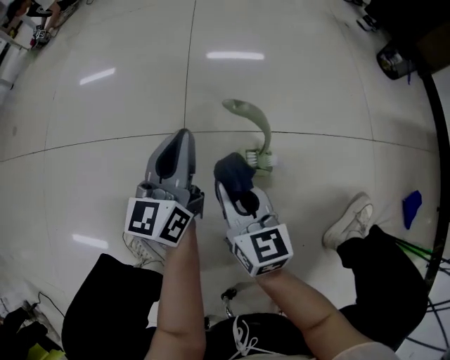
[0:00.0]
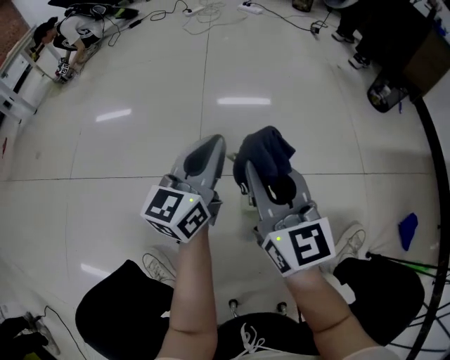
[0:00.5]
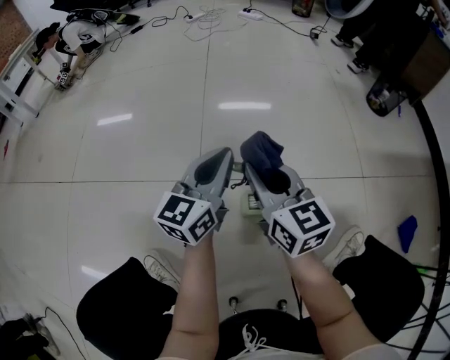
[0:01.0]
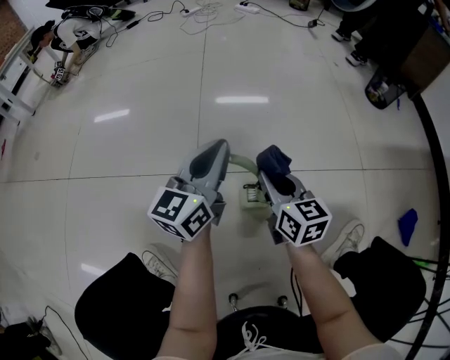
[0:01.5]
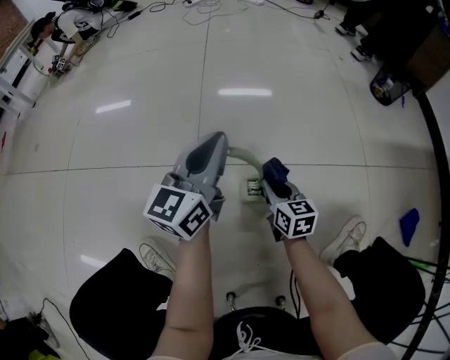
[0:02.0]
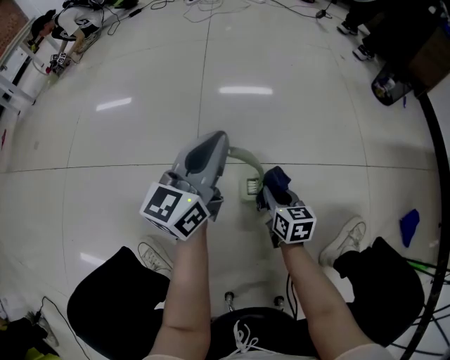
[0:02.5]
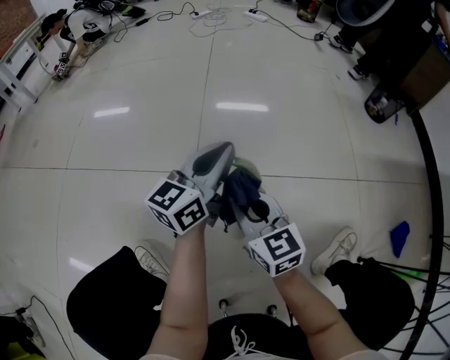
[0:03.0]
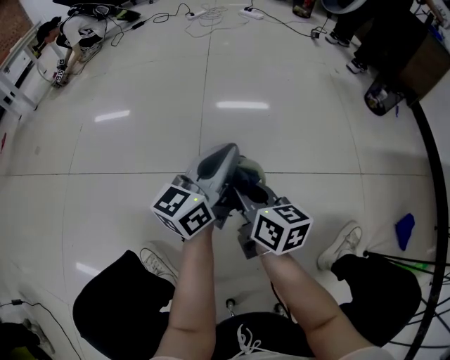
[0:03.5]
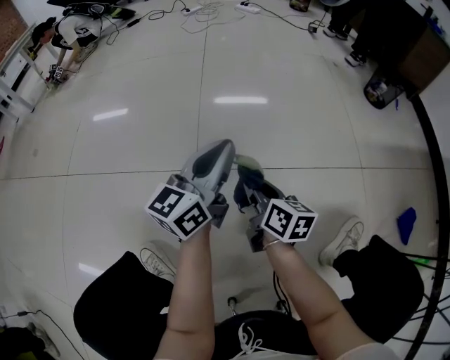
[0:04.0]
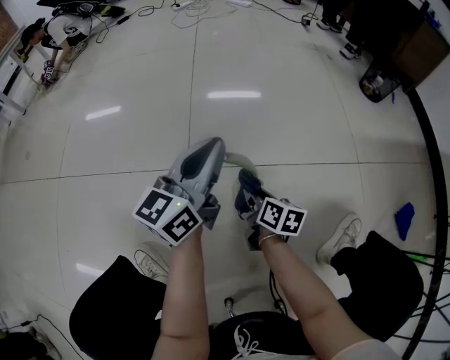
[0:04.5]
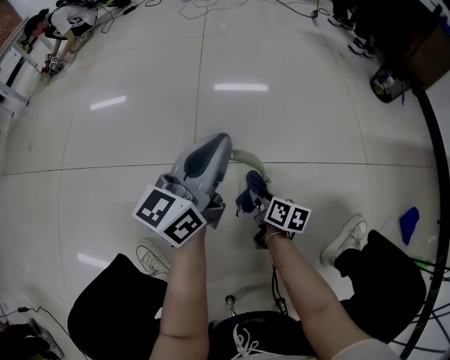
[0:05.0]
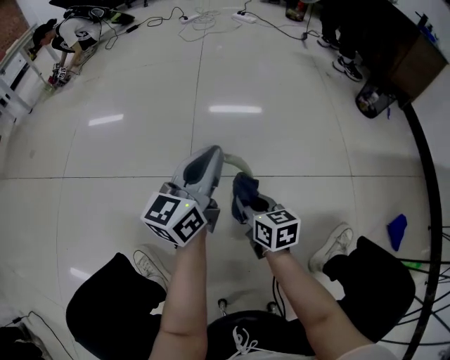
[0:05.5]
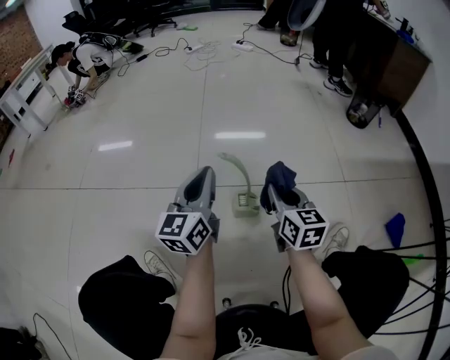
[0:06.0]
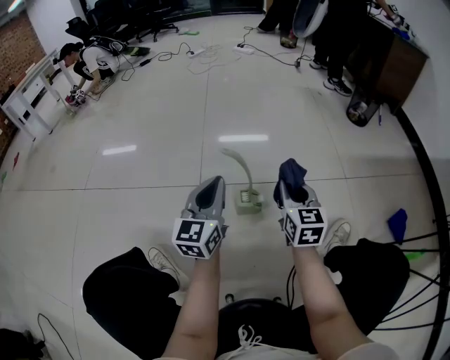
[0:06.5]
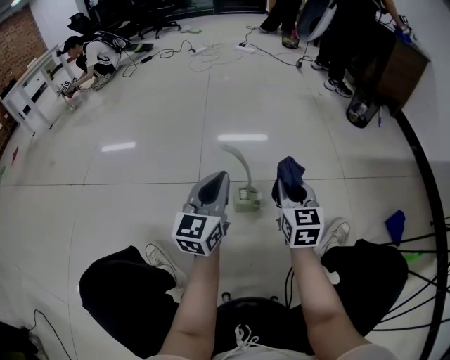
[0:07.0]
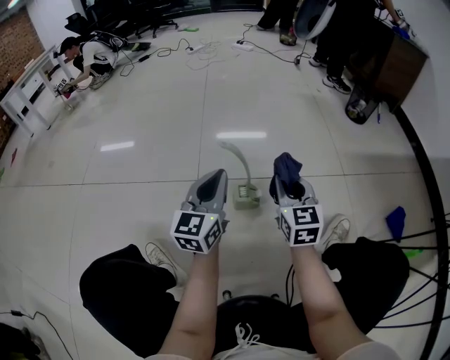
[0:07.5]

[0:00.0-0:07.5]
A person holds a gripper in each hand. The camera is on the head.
0:00.0 to 0:02.0: The right gripper shifts roughly 15 cm to the right and forward, and travels upward and back again, roughly 20 cm each way. Meanwhile the left gripper heads upward and to the right, covering approximately 10 cm.
0:02.0 to 0:04.0: The right gripper shifts approximately 10 cm upward and to the left, and rotates approximately 20 degrees.
0:04.0 to 0:05.5: The right gripper reaches about 15 cm downward, then returns, and turns by about 20 degrees.
0:05.5 to 0:07.5: The left gripper travels backward by roughly 10 cm, while the right gripper travels upward and to the right by roughly 20 cm, and changes its angle by about 40 degrees.

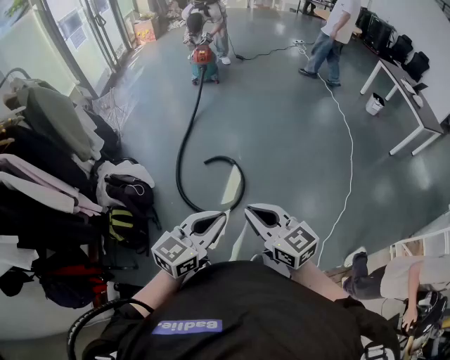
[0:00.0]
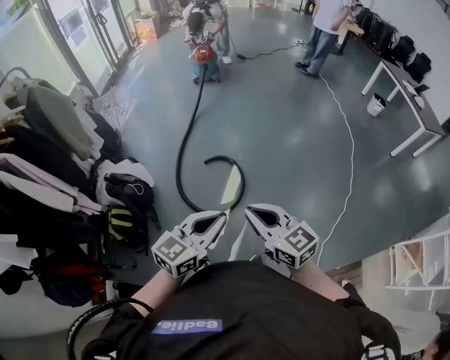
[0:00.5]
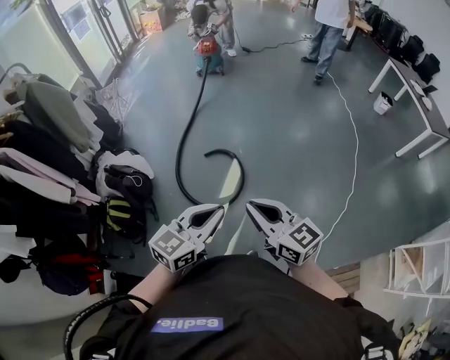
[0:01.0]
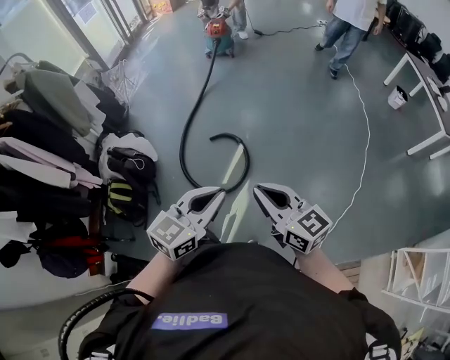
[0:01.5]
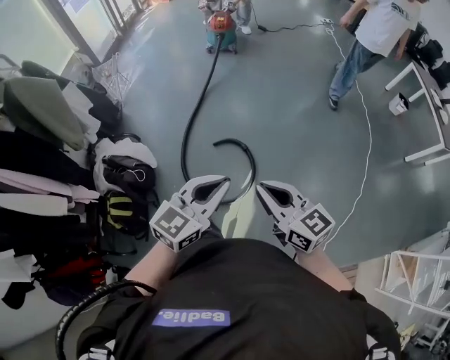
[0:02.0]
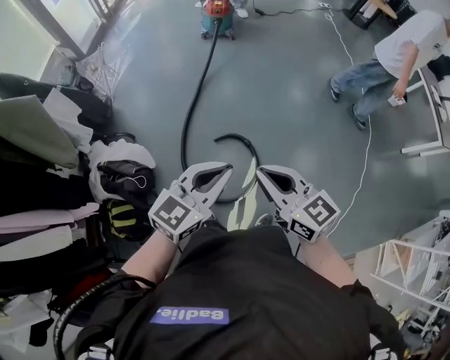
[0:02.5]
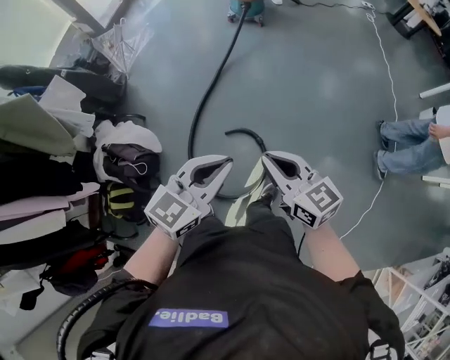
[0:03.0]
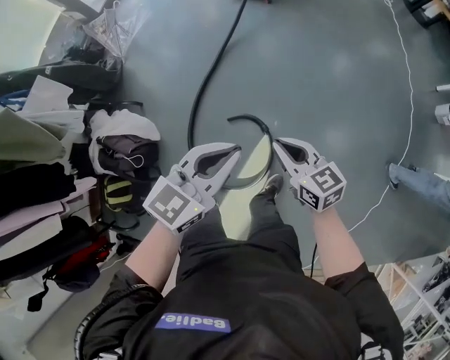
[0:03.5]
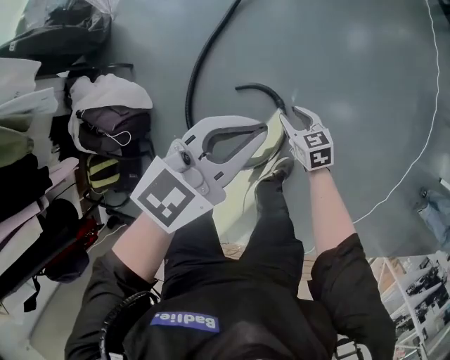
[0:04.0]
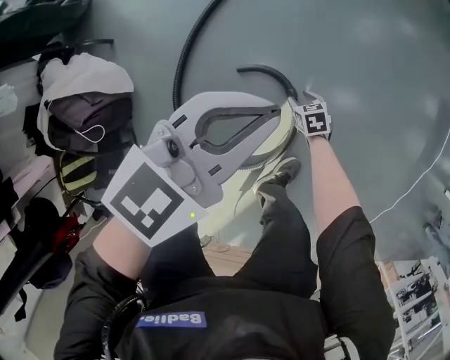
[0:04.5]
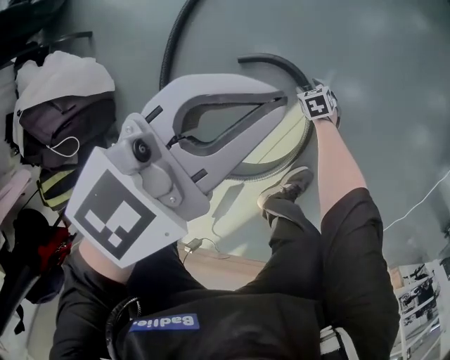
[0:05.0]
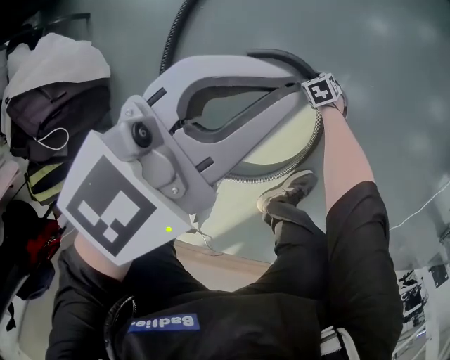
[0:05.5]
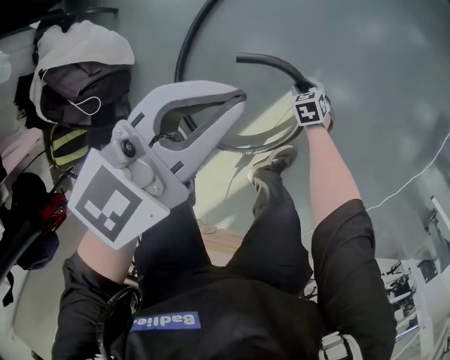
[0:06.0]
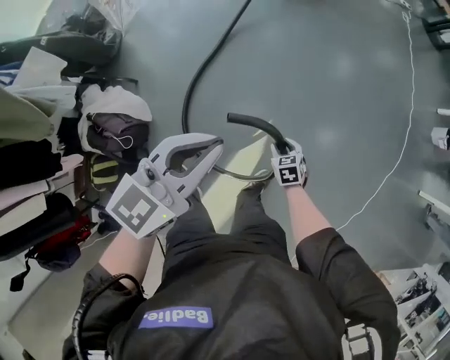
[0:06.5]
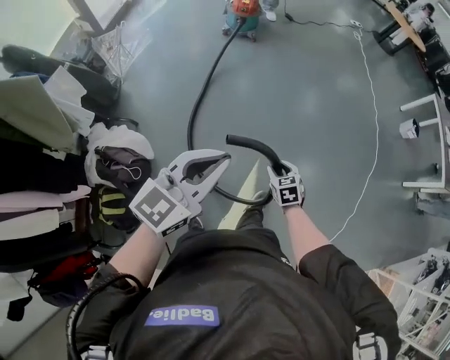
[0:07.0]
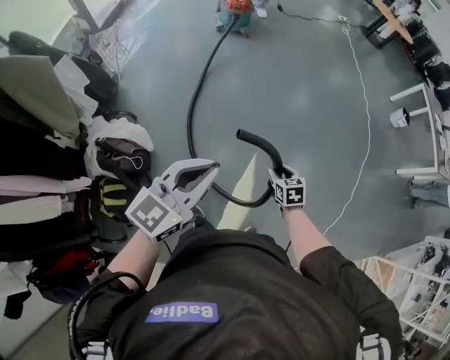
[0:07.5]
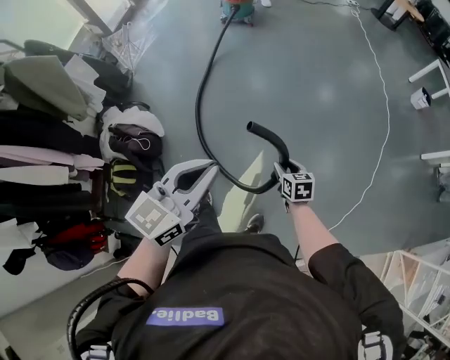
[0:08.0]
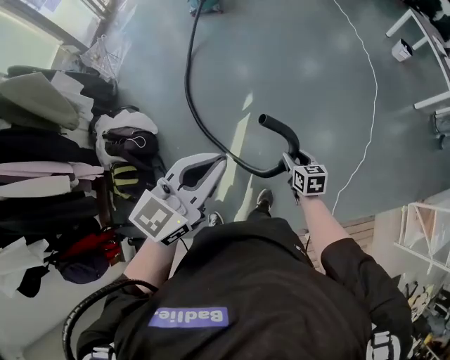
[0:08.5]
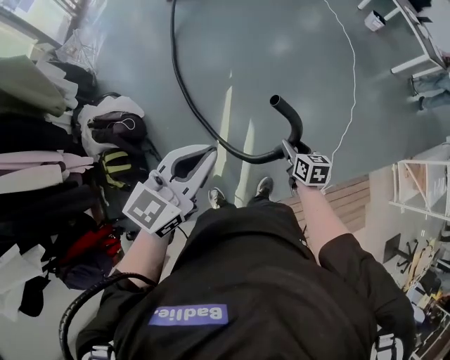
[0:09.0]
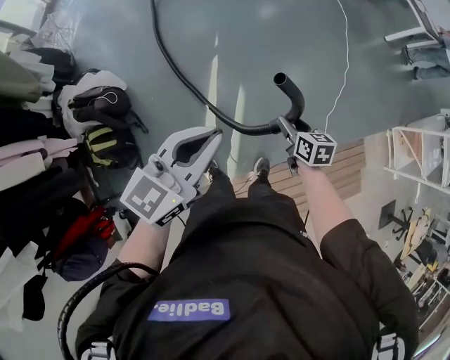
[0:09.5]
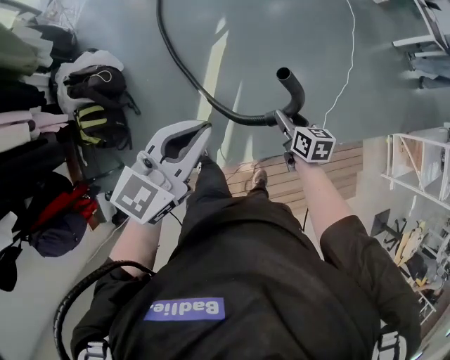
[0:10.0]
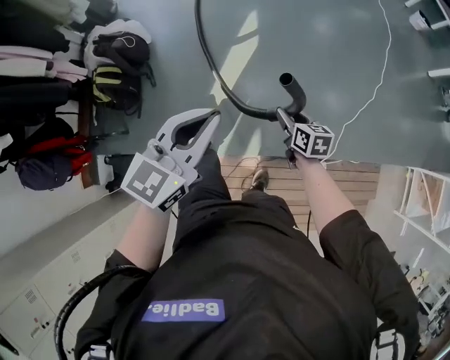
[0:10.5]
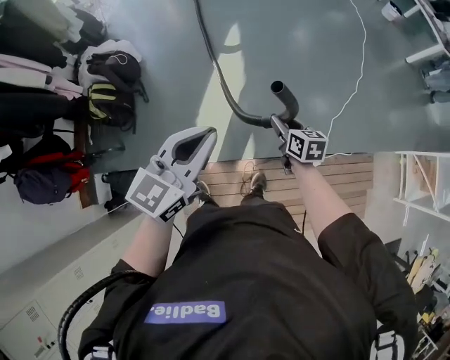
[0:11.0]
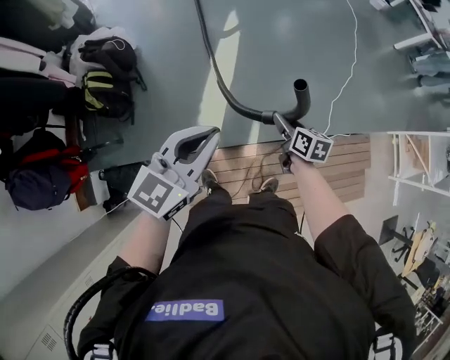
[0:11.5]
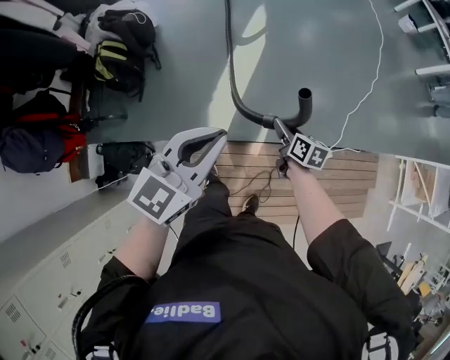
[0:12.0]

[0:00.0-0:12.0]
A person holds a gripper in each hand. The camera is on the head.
0:00.0 to 0:02.0: Both grippers travel together forward, about 20 cm.
0:02.0 to 0:04.0: The pair of grippers is taken forward, approximately 40 cm. The right gripper shifts some 50 cm downward, tilts its fingers some 40 degrees downward, and opens. The left gripper shifts roughly 25 cm downward.
0:04.0 to 0:06.0: The left gripper goes about 15 cm downward. The right gripper is displaced downward by roughly 30 cm, and changes its angle by approximately 30 degrees.
0:06.0 to 0:08.0: Both grippers are carried roughly 50 cm. The right gripper travels upward by approximately 60 cm, and swivels some 50 degrees.
0:08.0 to 0:10.0: Both grippers move backward, some 35 cm.
0:10.0 to 0:12.0: Both grippers move backward and downward, some 35 cm.

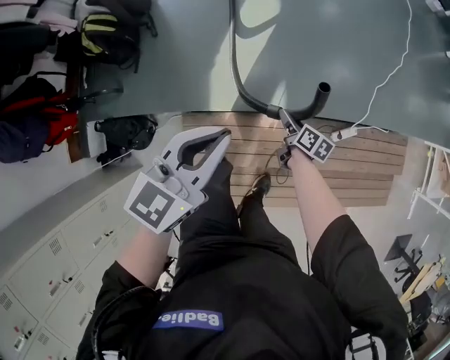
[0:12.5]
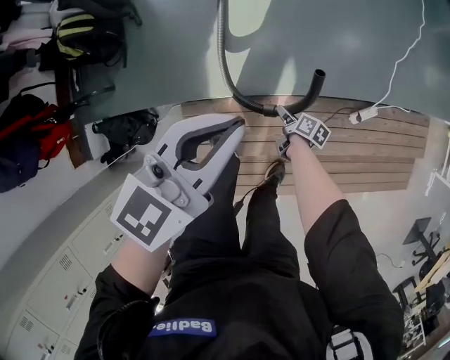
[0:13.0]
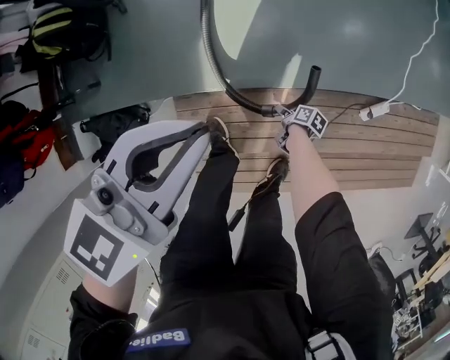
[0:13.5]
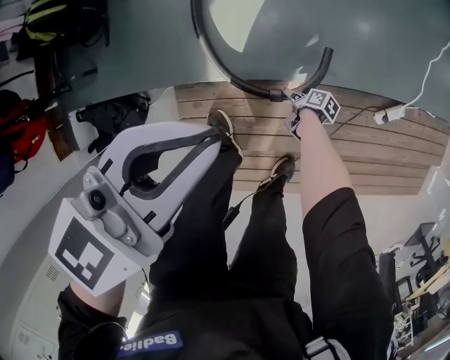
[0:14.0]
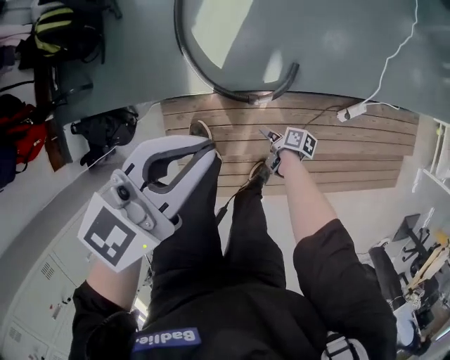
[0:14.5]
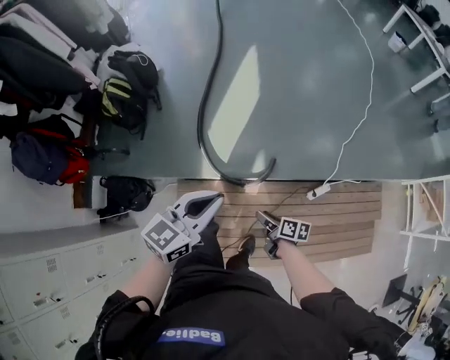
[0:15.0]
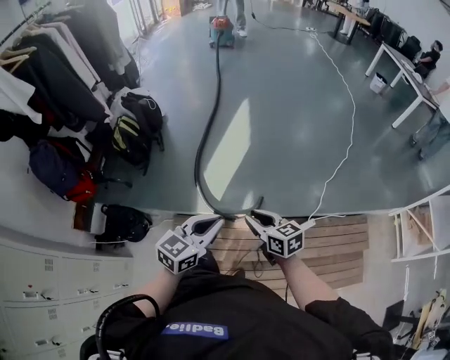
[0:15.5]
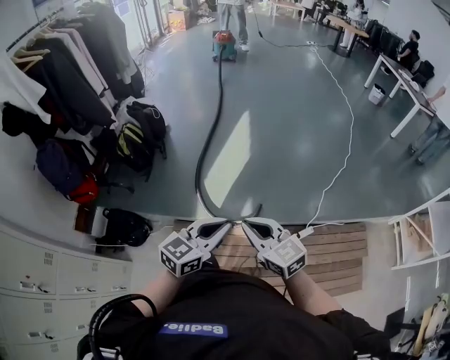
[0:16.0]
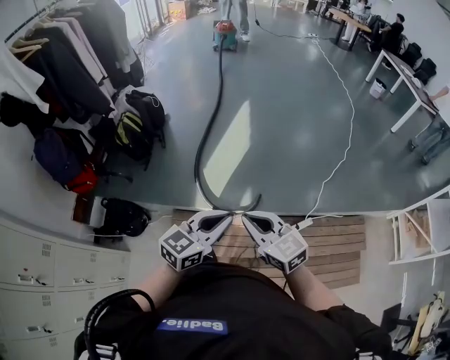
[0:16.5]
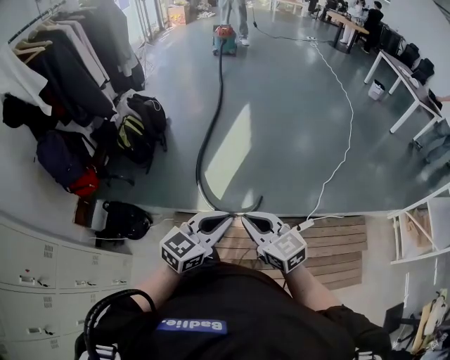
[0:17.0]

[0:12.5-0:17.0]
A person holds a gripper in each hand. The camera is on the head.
0:12.5 to 0:14.5: The right gripper travels downward and backward by about 30 cm, and turns by approximately 30 degrees. The left gripper travels downward by approximately 10 cm.
0:14.5 to 0:17.0: The right gripper travels upward by about 70 cm, rotates around the line of its fingers by approximately 90 degrees, counterclockwise from behind, and closes its fingers. Meanwhile the left gripper shifts approximately 35 cm upward and backward.

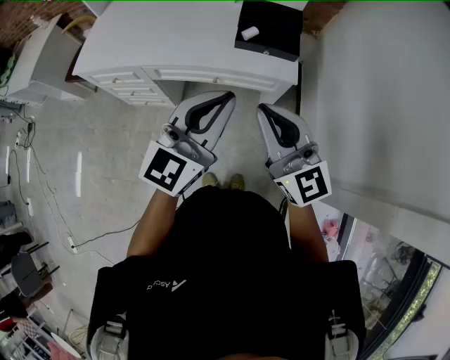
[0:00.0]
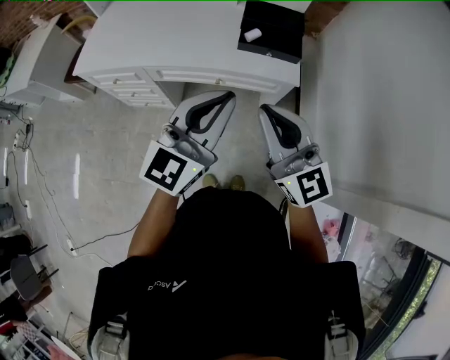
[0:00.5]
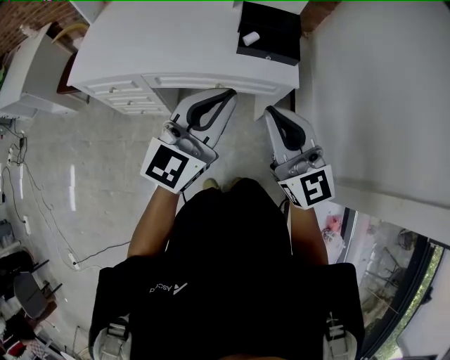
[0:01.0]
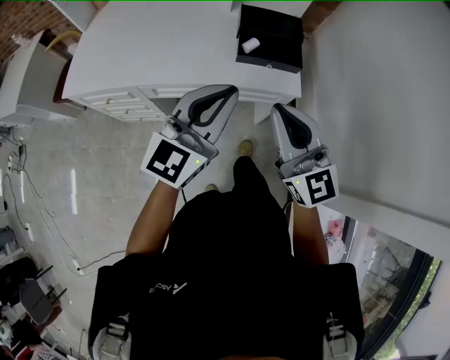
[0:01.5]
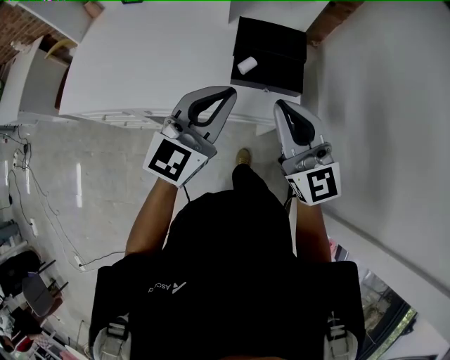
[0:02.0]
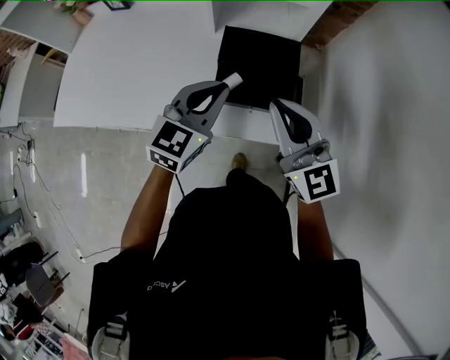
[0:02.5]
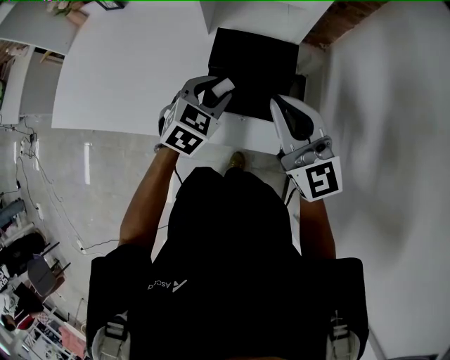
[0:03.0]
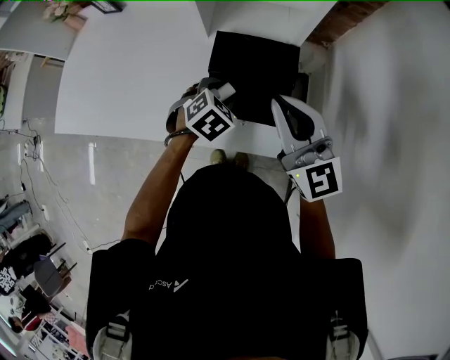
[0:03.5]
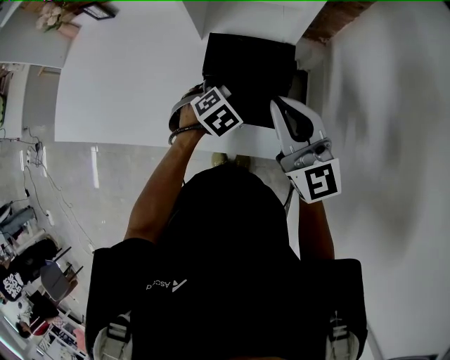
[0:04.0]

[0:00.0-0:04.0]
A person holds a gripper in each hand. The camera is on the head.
0:00.0 to 0:02.0: Both grippers move forward, approximately 20 cm.
0:02.0 to 0:04.0: The left gripper goes about 35 cm downward and forward, angles its fingers downward, by roughly 70 degrees, and opens up. The right gripper goes roughly 20 cm forward and to the right.
